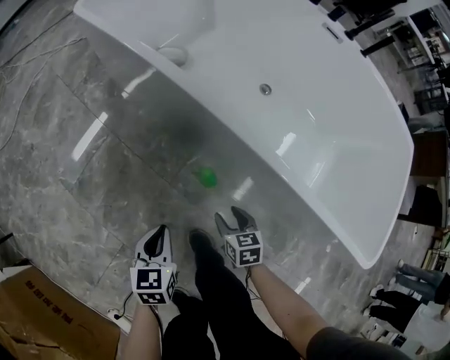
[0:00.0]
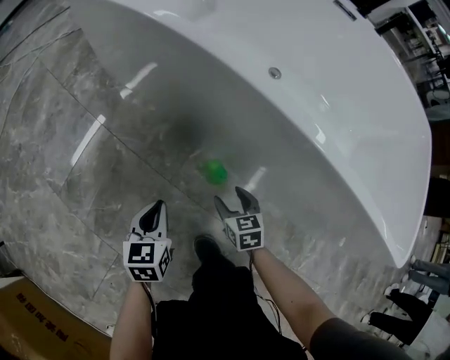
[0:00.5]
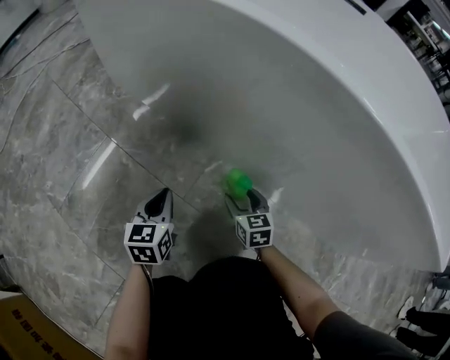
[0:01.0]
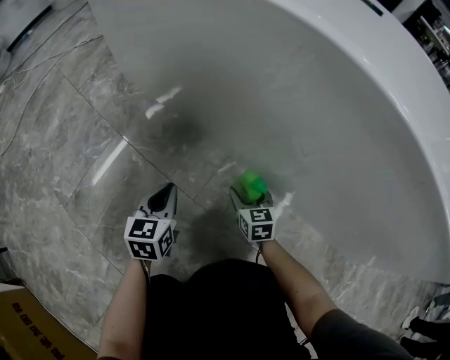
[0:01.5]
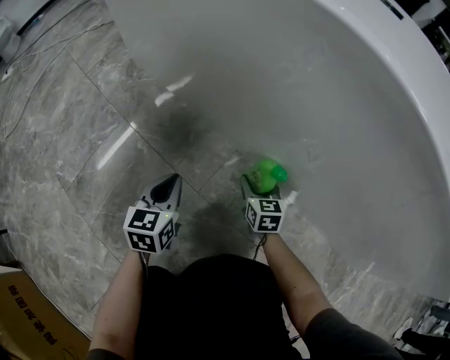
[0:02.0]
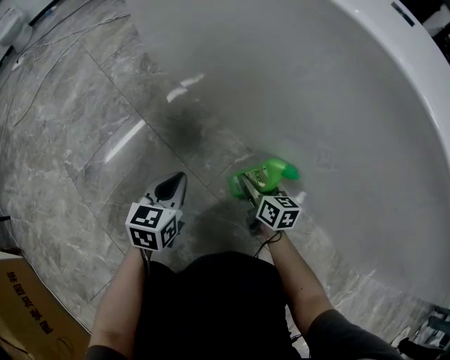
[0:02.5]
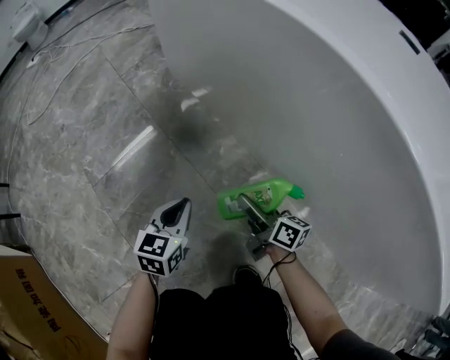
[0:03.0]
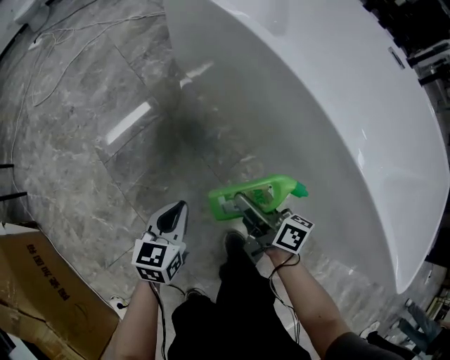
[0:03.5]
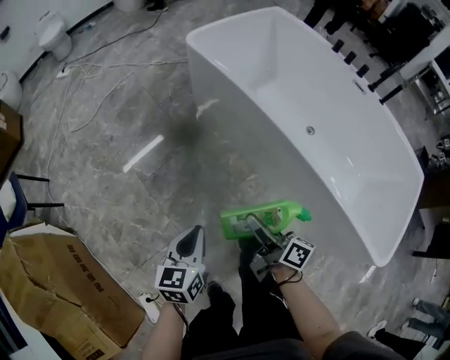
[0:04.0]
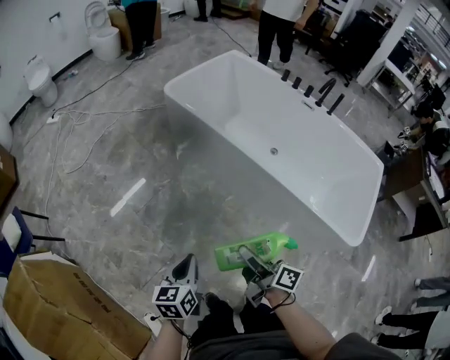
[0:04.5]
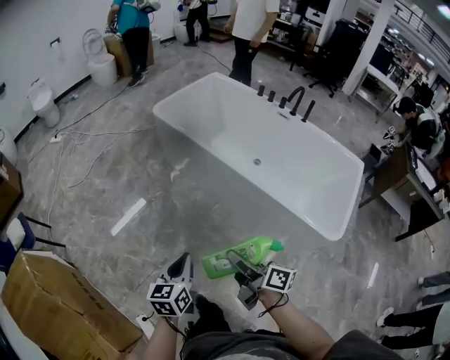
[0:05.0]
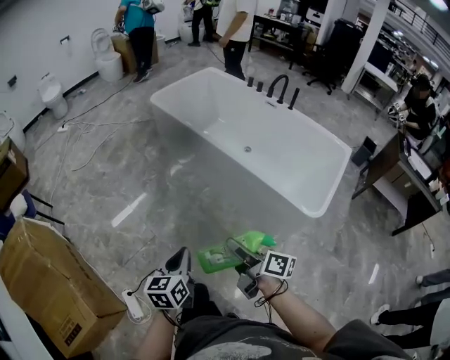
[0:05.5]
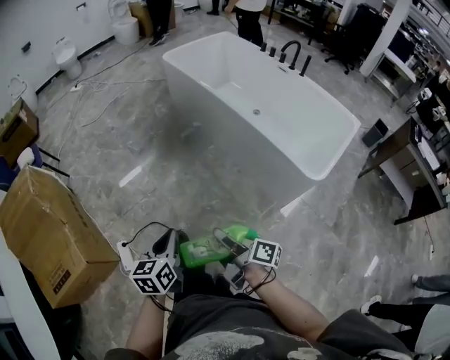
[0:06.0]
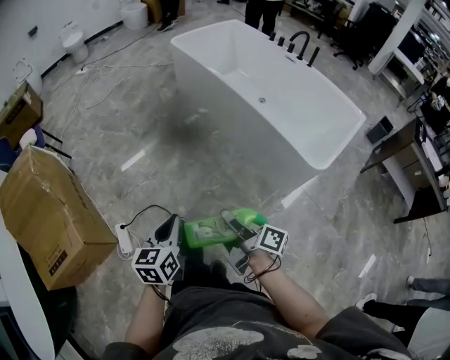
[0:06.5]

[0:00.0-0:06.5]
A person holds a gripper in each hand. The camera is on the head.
0:00.0 to 0:02.0: Both grippers move downward and forward, about 30 cm.
0:02.0 to 0:04.5: The right gripper goes some 70 cm upward, and angles its fingers upward, by some 30 degrees. Meanwhile the left gripper is displaced upward and backward by roughly 70 cm.
0:04.5 to 0:06.5: Both grippers are carried backward, about 40 cm.

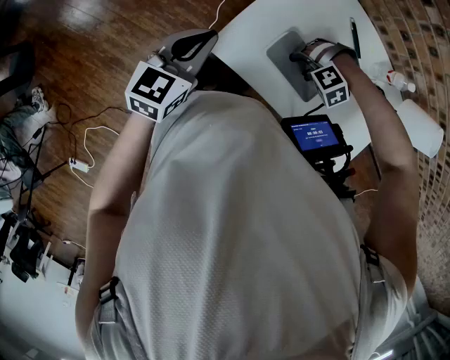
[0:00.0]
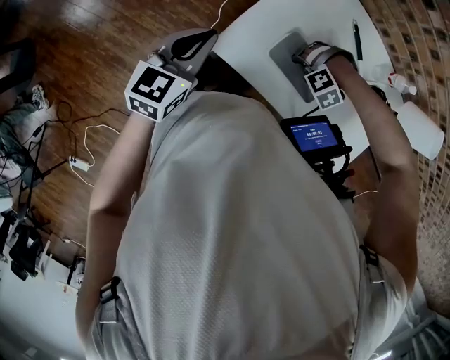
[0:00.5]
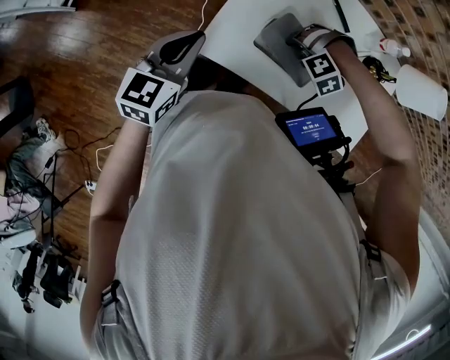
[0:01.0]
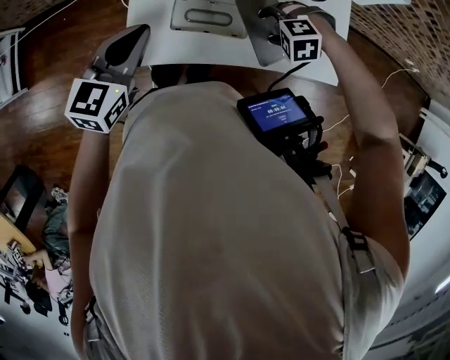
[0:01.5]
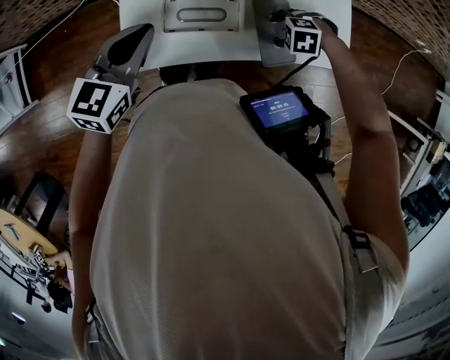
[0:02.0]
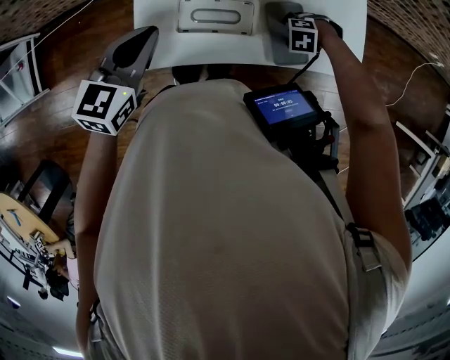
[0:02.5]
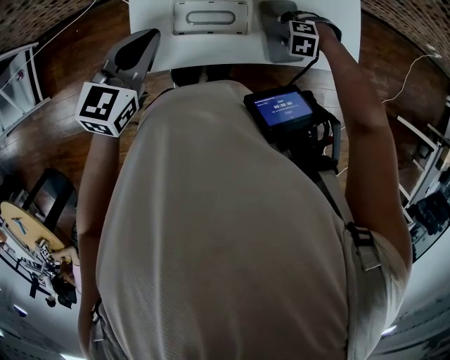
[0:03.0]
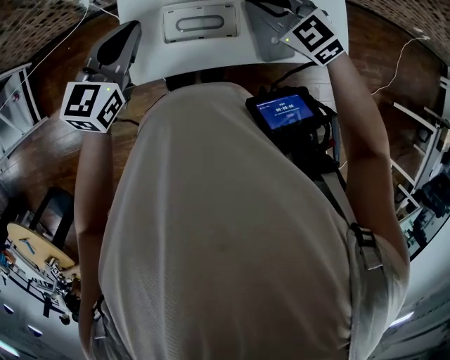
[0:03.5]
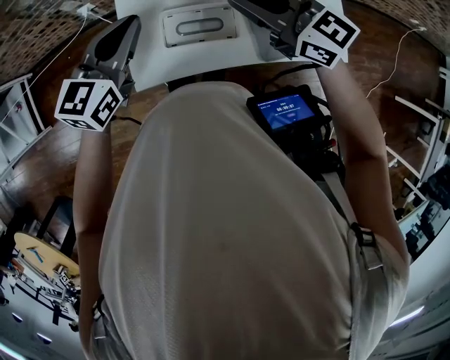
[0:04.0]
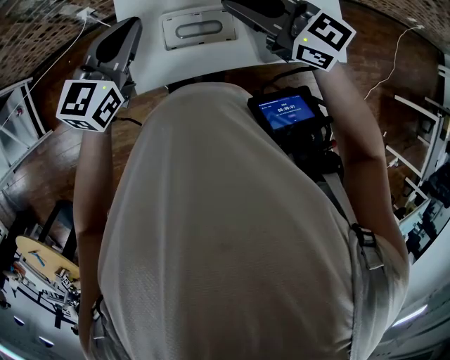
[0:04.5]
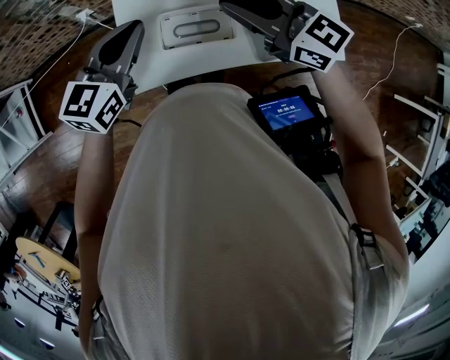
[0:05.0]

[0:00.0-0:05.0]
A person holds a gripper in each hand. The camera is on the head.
0:00.0 to 0:02.5: The right gripper ends up approximately 10 cm from where it was, and rotates about 40 degrees.
0:02.5 to 0:05.0: The left gripper moves about 5 cm. Meanwhile the right gripper is displaced upward by some 30 cm, tilts its fingers some 70 degrees upward, and closes up.

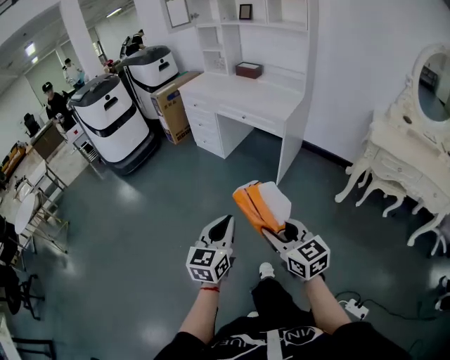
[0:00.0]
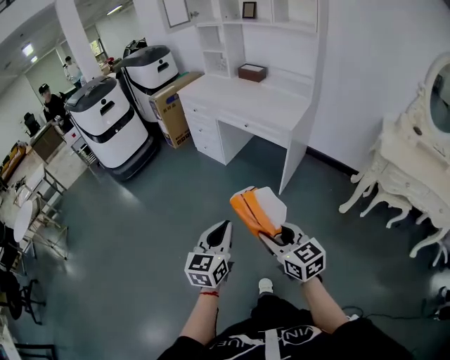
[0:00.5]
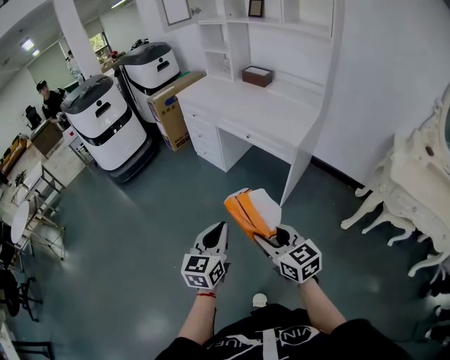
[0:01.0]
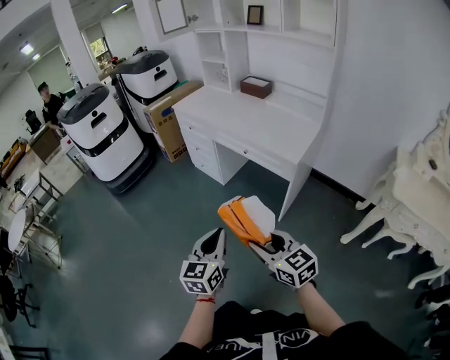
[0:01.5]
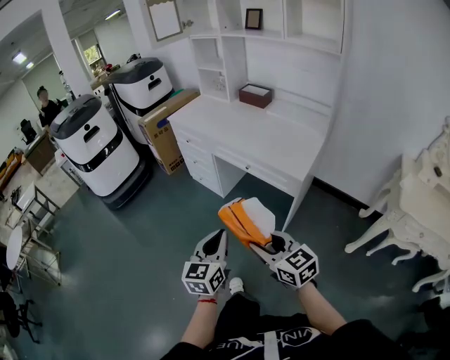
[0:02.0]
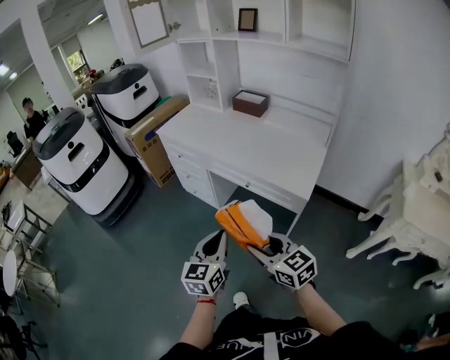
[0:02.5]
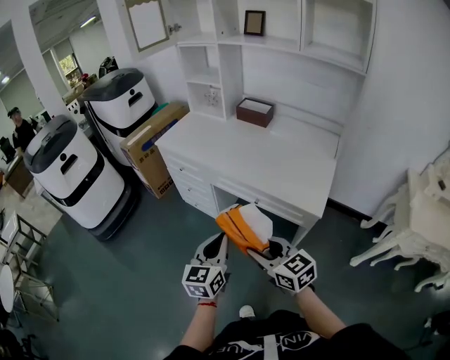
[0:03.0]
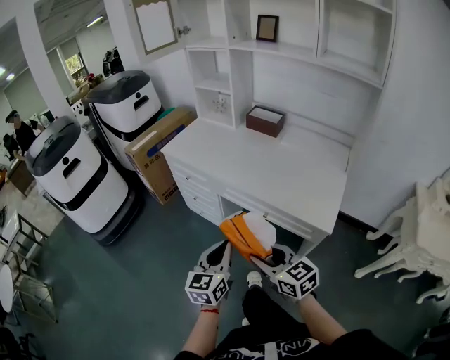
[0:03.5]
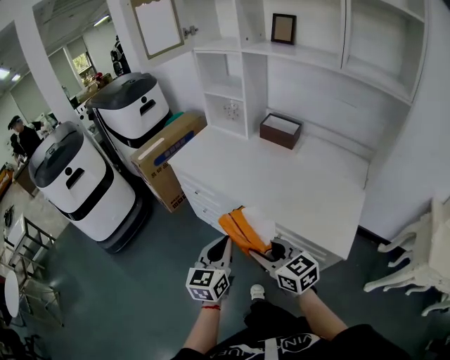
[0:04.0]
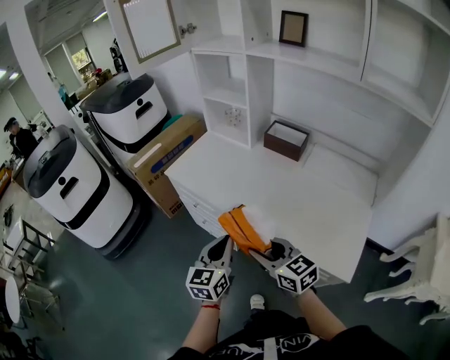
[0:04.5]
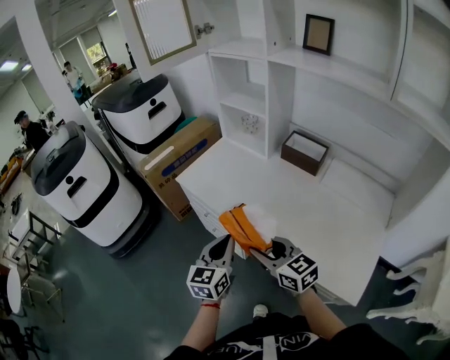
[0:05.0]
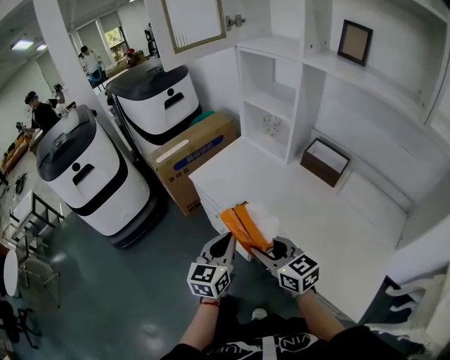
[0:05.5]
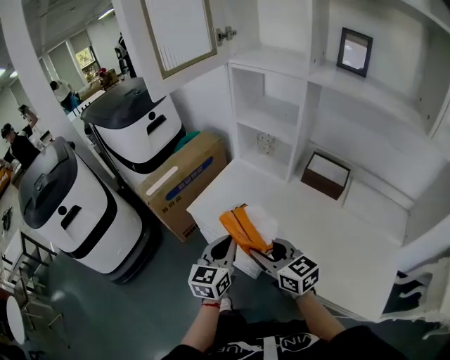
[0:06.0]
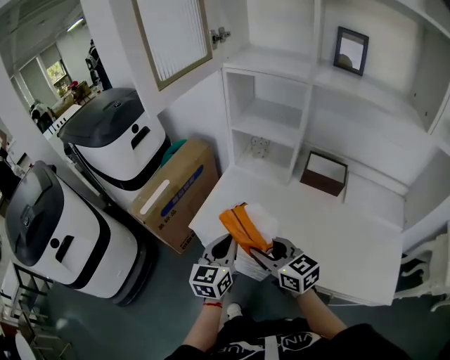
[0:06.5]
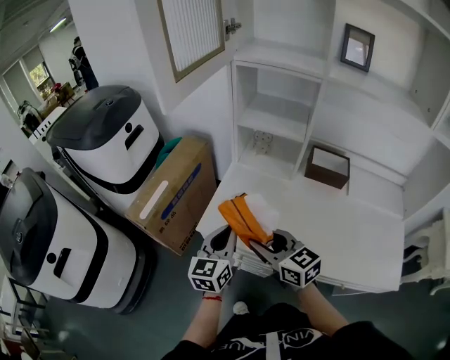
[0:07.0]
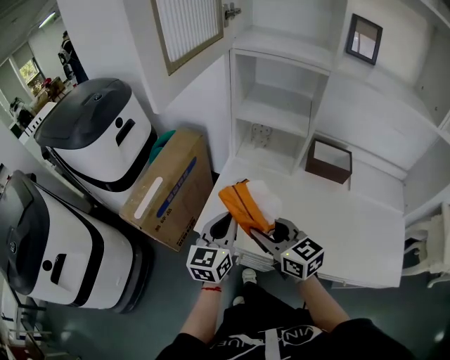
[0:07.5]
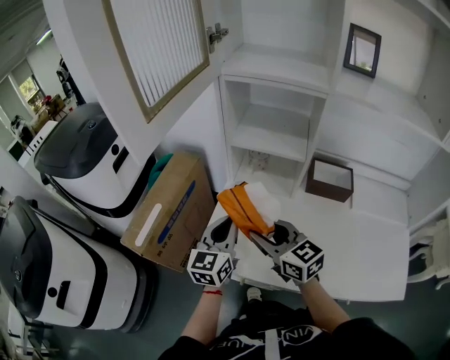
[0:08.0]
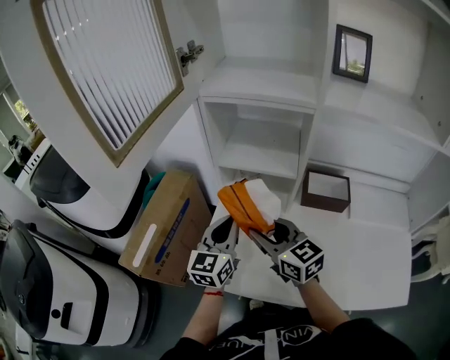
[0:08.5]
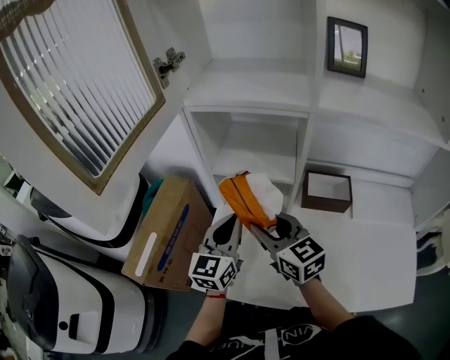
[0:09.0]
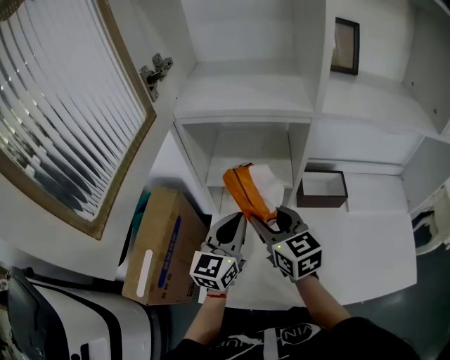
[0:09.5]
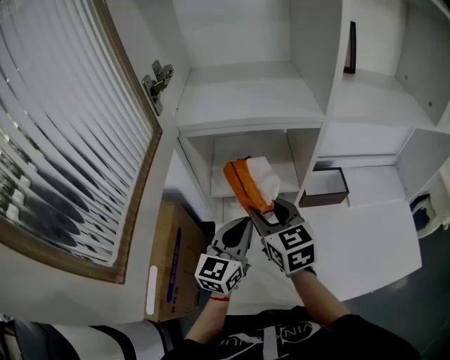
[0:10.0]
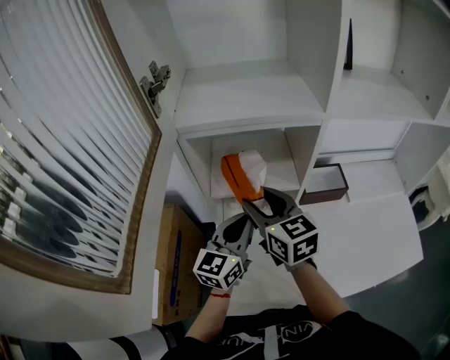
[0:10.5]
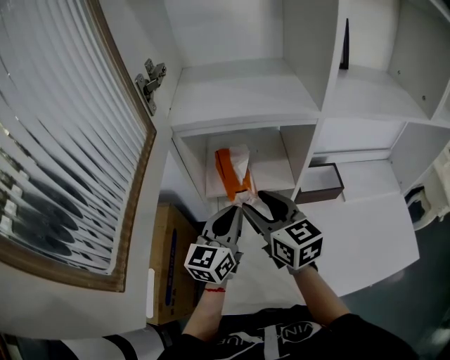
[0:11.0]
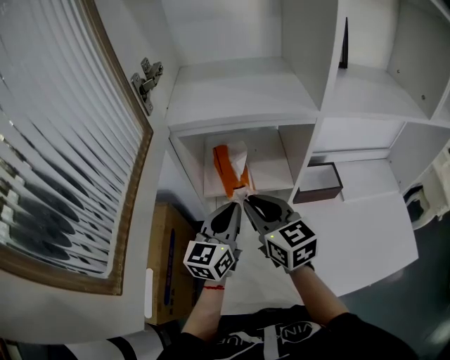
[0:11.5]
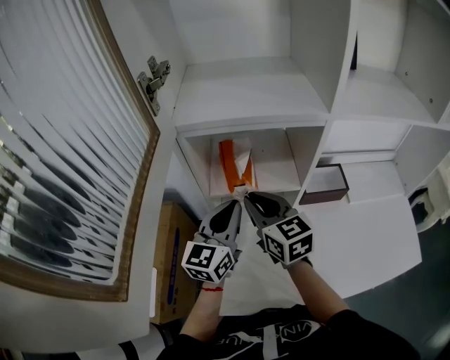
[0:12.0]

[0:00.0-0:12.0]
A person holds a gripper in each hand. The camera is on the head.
0:00.0 to 0:02.0: Both grippers are carried forward, approximately 40 cm.
0:02.0 to 0:04.0: The two grippers travel together, forward, about 40 cm.
0:04.0 to 0:06.0: The two grippers go about 35 cm forward.
0:06.0 to 0:08.0: Both grippers move forward, roughly 20 cm.
0:08.0 to 0:10.0: The right gripper shifts by about 20 cm, and turns by roughly 30 degrees, while the left gripper moves approximately 15 cm, and swivels some 30 degrees.
0:10.0 to 0:12.0: The right gripper closes up. The left gripper changes place by approximately 5 cm.

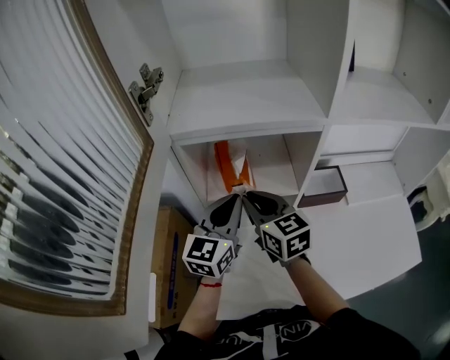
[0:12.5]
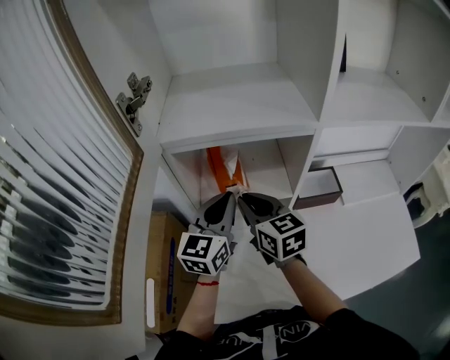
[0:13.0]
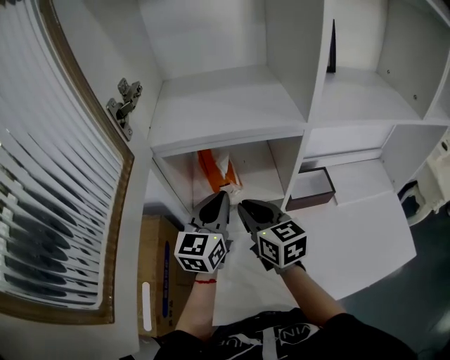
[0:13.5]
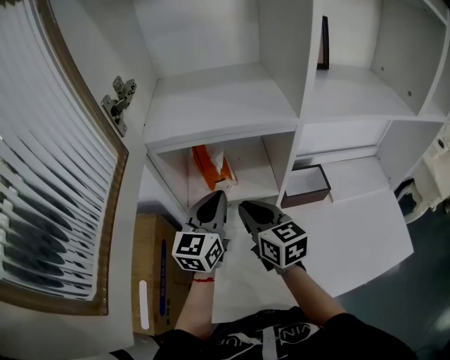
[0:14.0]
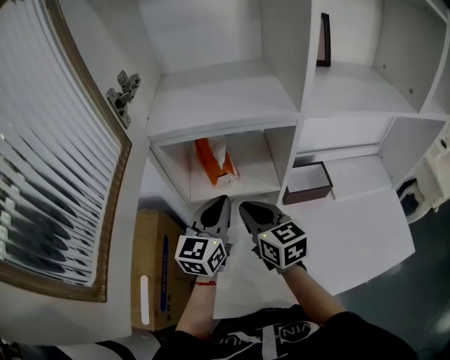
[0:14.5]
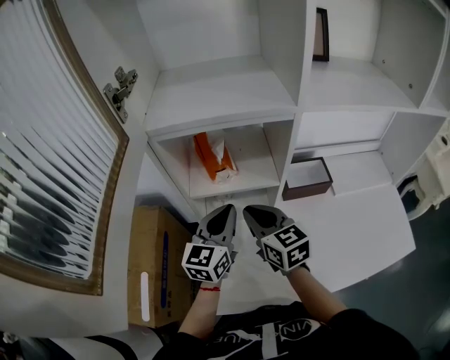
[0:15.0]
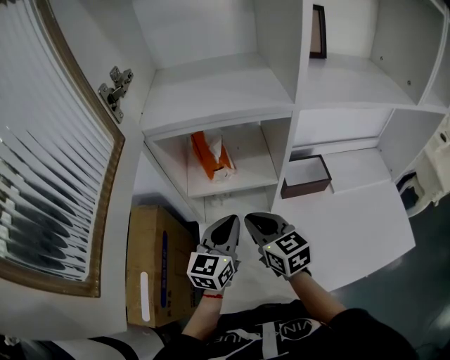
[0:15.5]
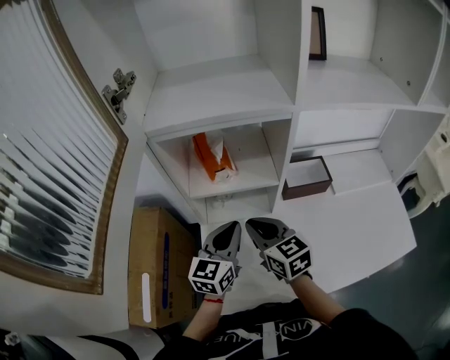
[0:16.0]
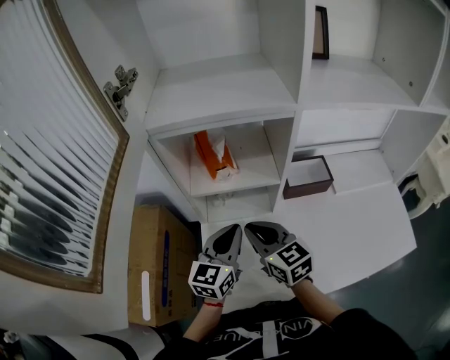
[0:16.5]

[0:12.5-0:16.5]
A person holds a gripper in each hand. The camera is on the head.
0:12.5 to 0:14.5: There are only small adjustments of the grippers.
0:14.5 to 0:16.5: The left gripper moves backward and downward, roughly 10 cm, while the right gripper shifts roughly 5 cm backward.
